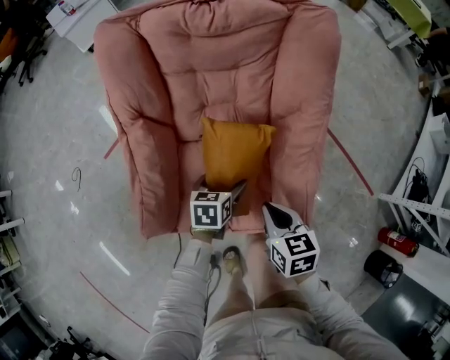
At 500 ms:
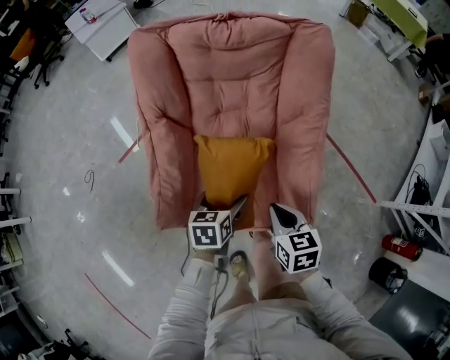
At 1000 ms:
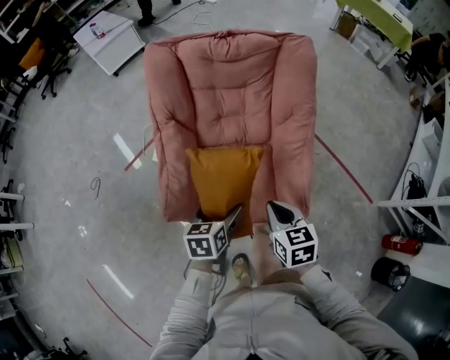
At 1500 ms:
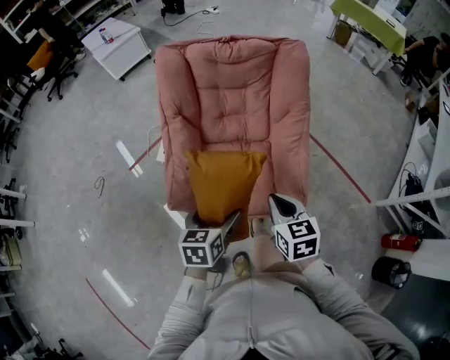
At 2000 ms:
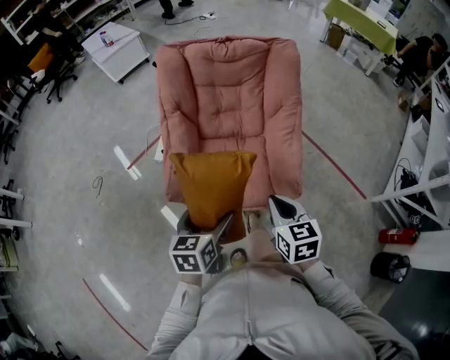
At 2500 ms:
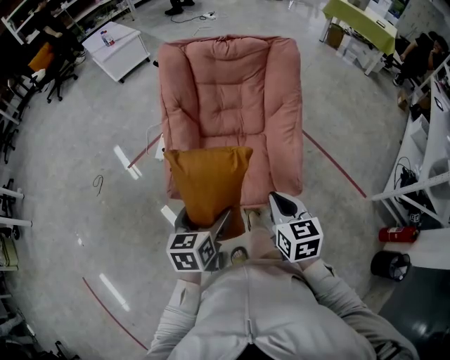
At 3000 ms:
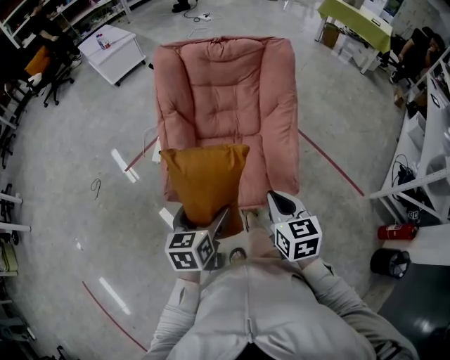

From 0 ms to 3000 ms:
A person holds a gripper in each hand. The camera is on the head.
From 0 ms to 1500 ms: The right gripper goes about 20 cm upward and backward, while the left gripper goes some 30 cm upward and backward.
From 1500 ms to 3000 ms: The grippers both shift backward by approximately 5 cm.

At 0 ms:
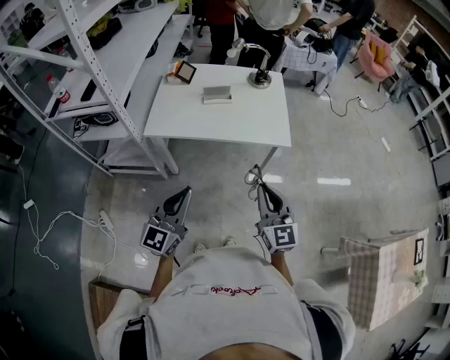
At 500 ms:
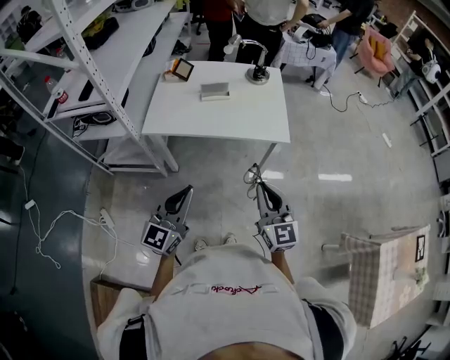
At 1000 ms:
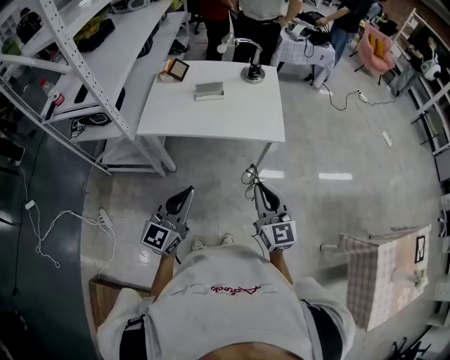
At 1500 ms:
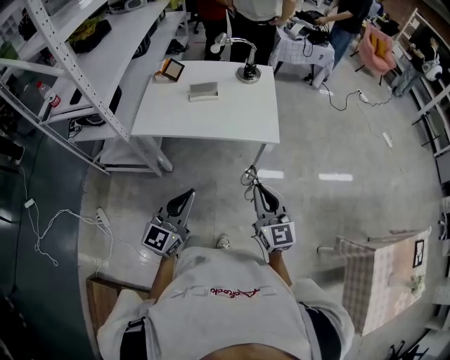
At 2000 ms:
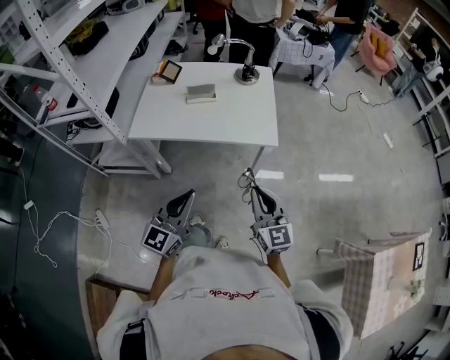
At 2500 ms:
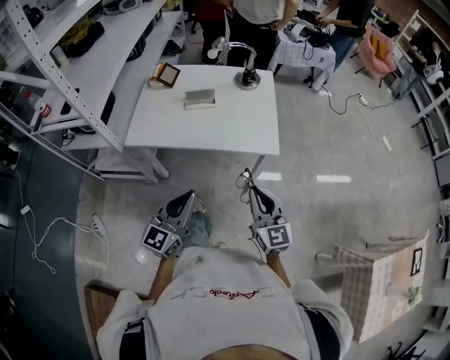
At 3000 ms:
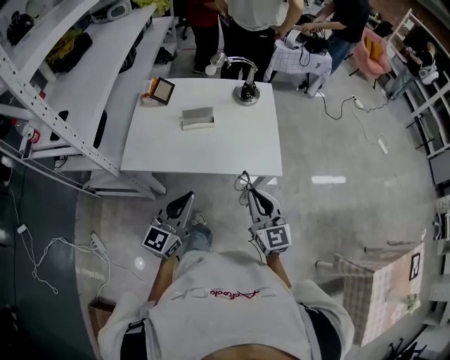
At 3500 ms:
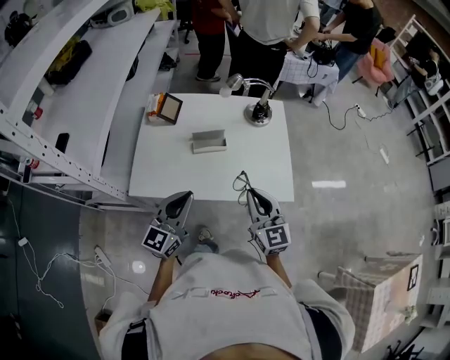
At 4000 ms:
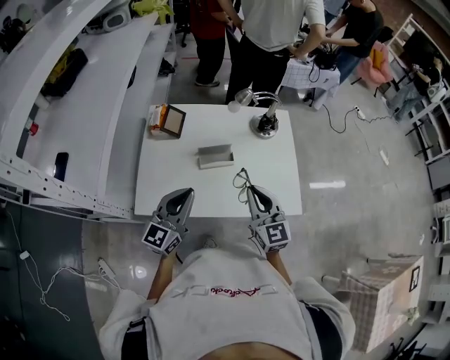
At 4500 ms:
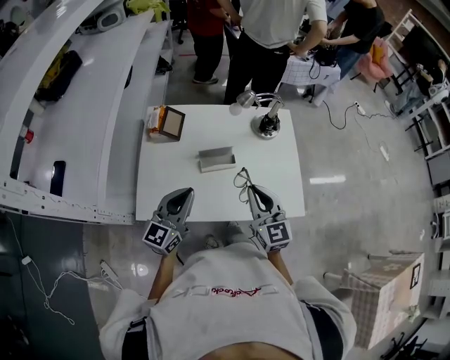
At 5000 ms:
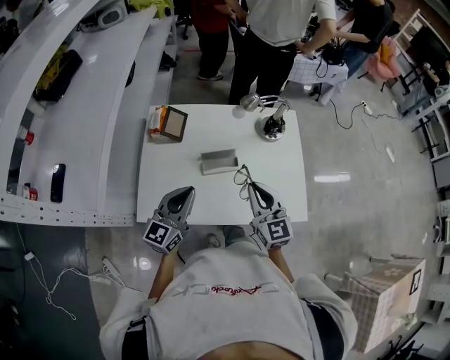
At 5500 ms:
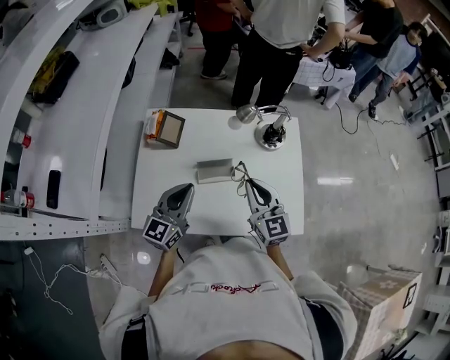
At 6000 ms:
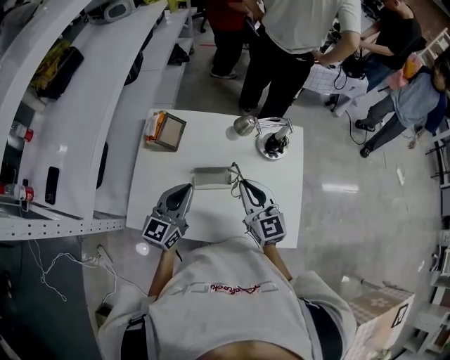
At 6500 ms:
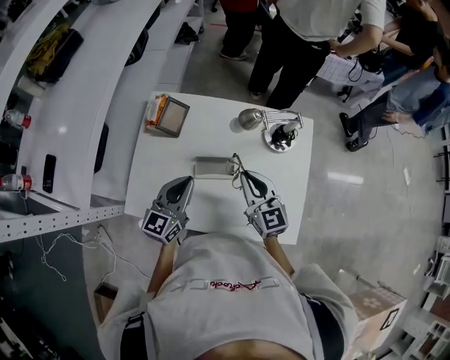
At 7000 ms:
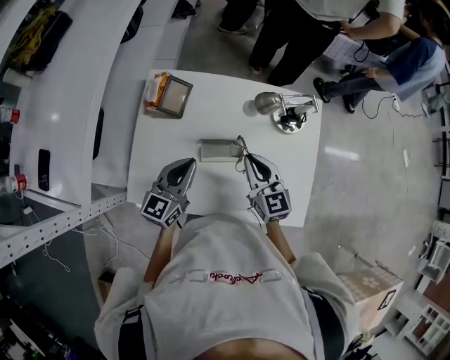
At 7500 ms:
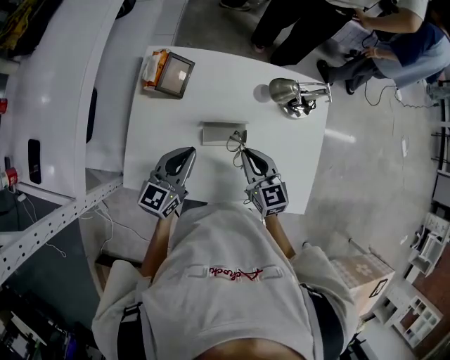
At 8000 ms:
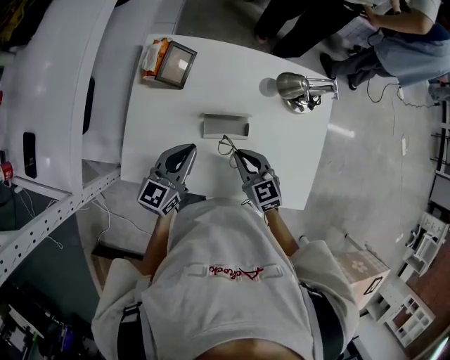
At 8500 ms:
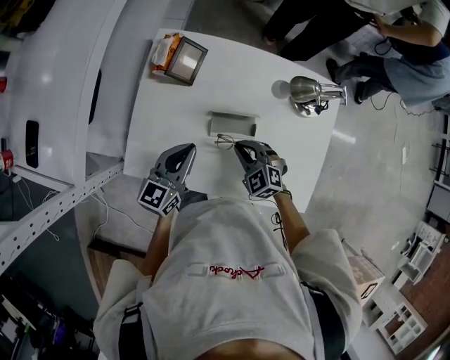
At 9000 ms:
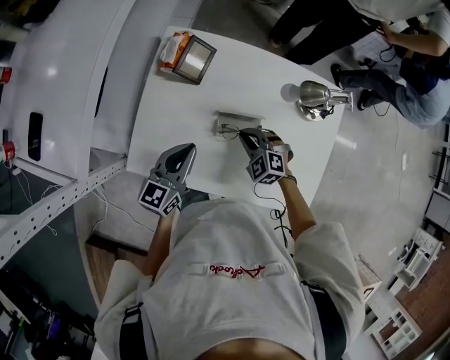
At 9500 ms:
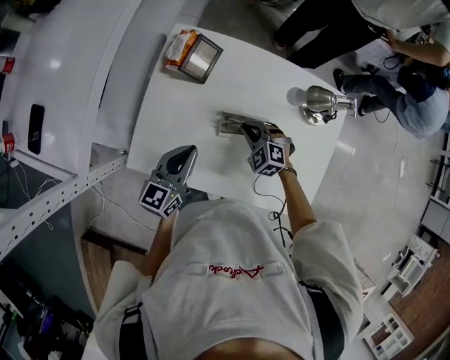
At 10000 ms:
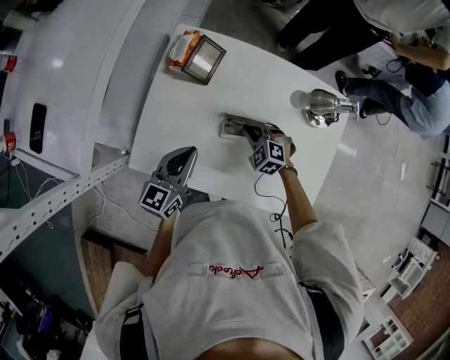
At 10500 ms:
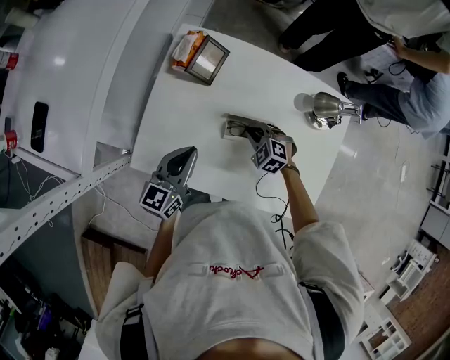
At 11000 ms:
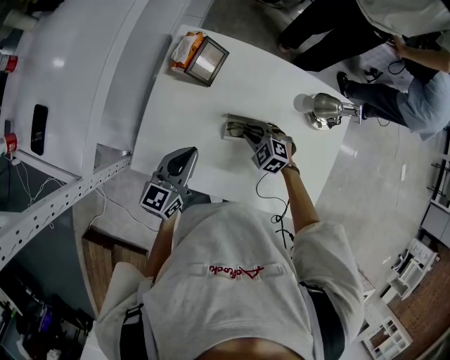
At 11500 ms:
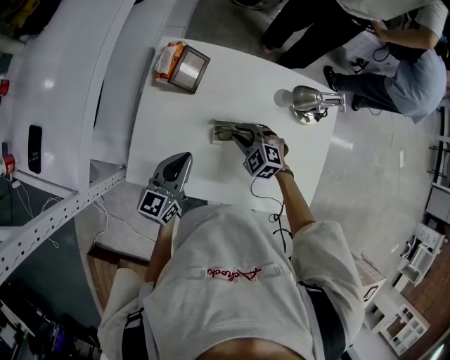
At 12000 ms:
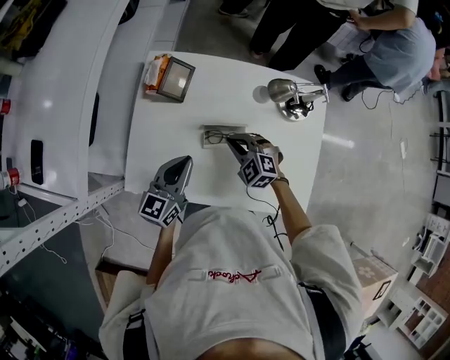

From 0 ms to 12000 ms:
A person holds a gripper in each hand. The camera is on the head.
From 0 ms to 2000 ms: Both grippers travel together to the right, roughly 10 cm.
From 2000 ms to 4000 ms: Both grippers move forward and to the left, approximately 40 cm.
From 4000 ms to 6000 ms: Both grippers travel together forward, roughly 15 cm.
From 6000 ms to 8000 ms: The right gripper is displaced downward and to the left by approximately 15 cm, and swivels about 30 degrees; the left gripper shifts roughly 10 cm downward.
From 8000 ms to 10000 ms: The right gripper moves downward and forward, roughly 10 cm, and rolls counterclockwise, seen from behind, by approximately 40 degrees; the left gripper goes some 5 cm to the left.
From 10000 ms to 12000 ms: The right gripper heads upward, covering approximately 5 cm.

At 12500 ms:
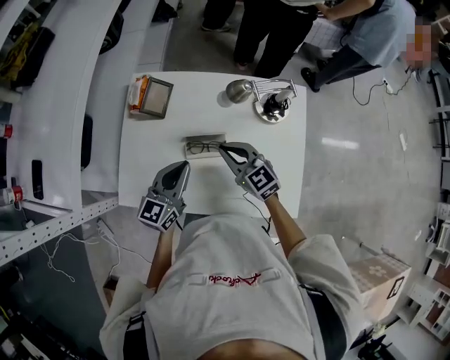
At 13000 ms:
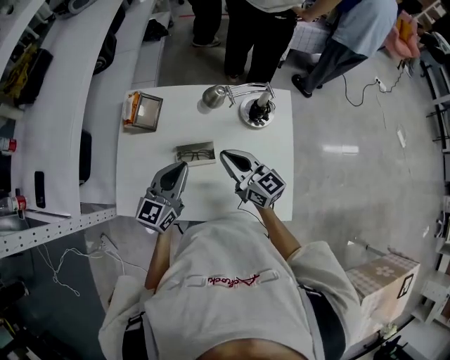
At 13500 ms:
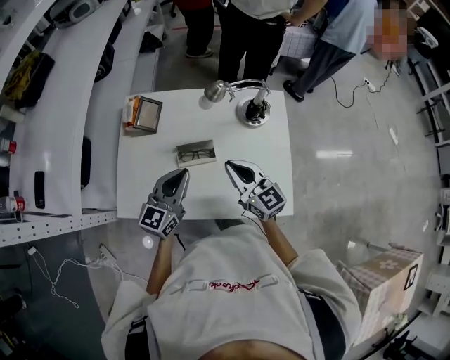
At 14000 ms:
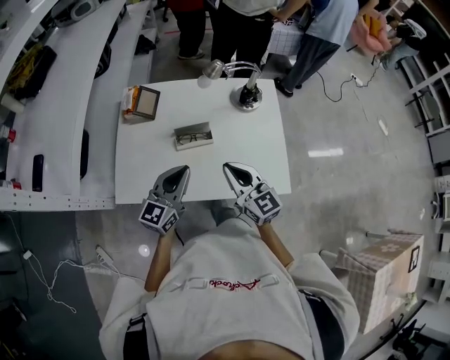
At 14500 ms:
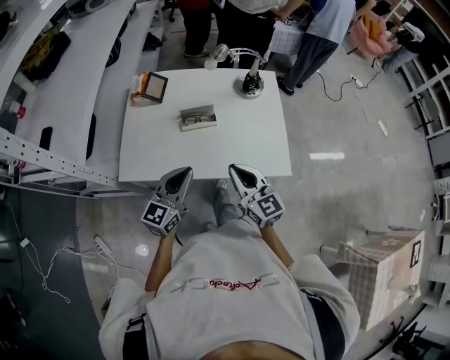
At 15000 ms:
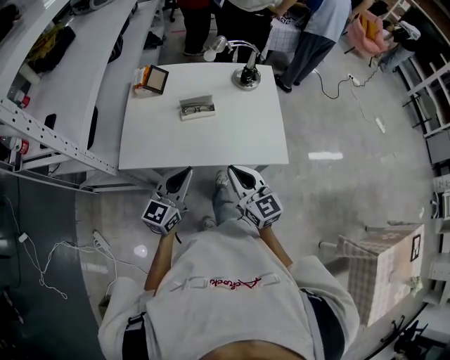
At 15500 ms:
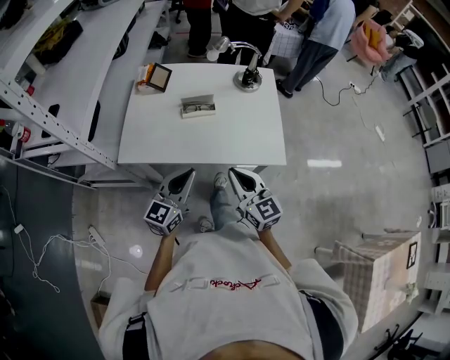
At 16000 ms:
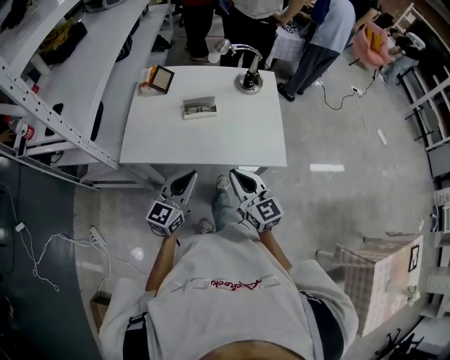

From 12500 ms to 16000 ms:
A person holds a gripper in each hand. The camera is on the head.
From 12500 ms to 14500 ms: The two grippers go roughly 25 cm backward. The right gripper turns by roughly 30 degrees.
From 14500 ms to 16000 ms: Both grippers move backward, about 10 cm.

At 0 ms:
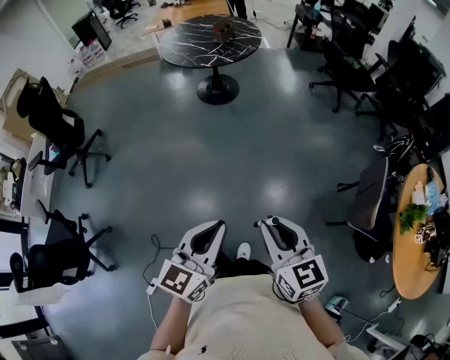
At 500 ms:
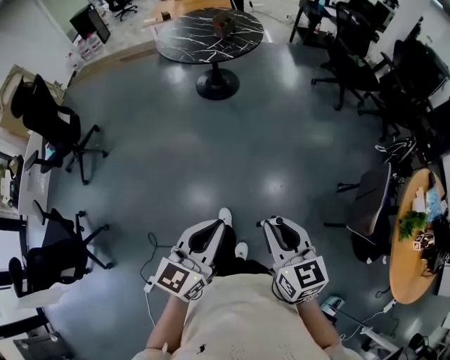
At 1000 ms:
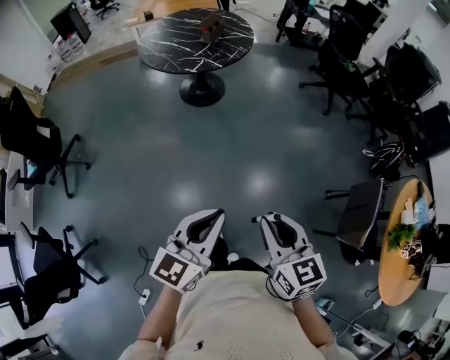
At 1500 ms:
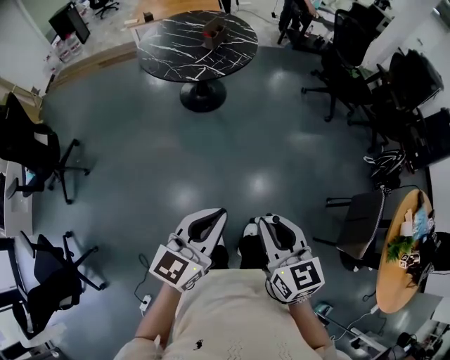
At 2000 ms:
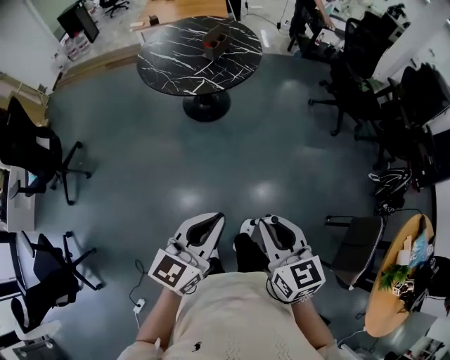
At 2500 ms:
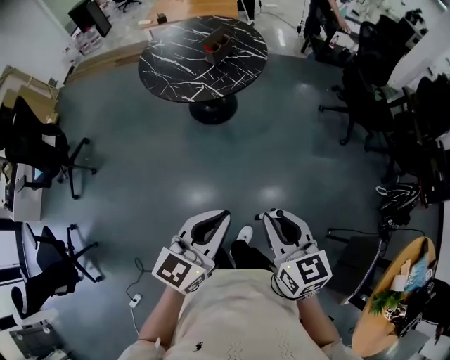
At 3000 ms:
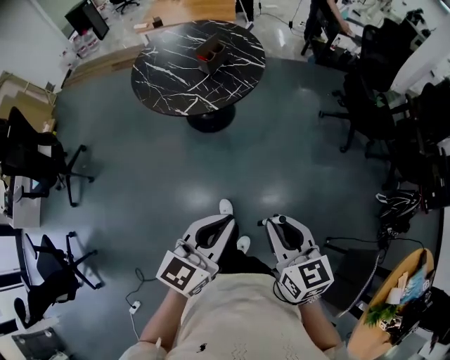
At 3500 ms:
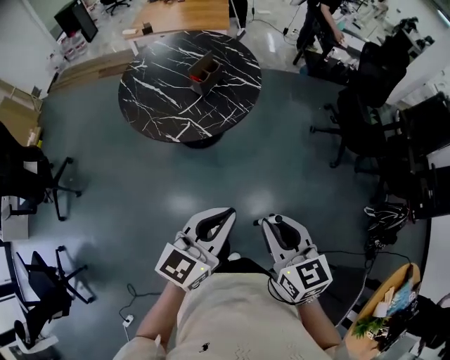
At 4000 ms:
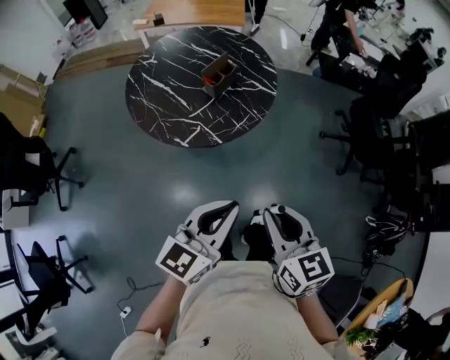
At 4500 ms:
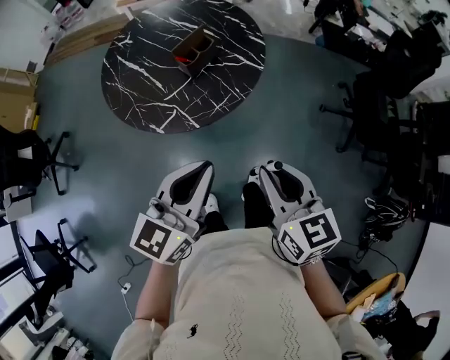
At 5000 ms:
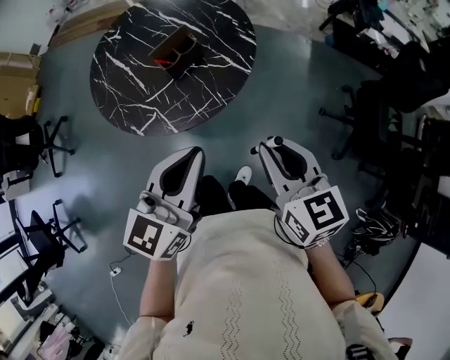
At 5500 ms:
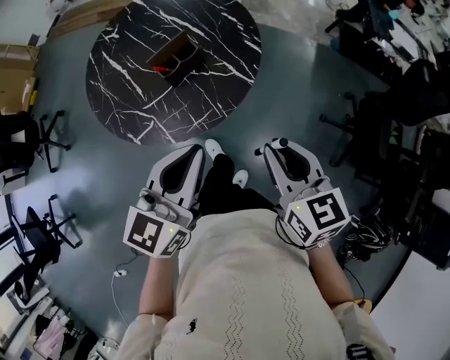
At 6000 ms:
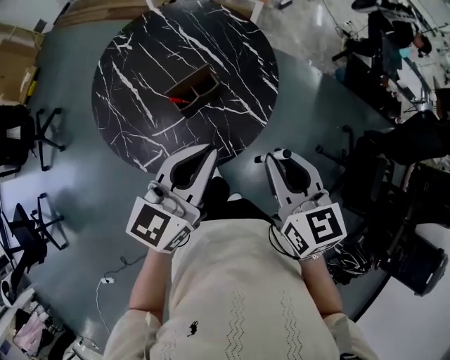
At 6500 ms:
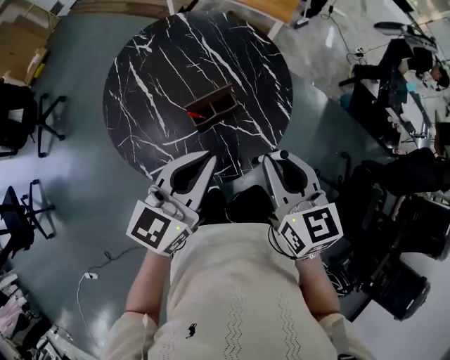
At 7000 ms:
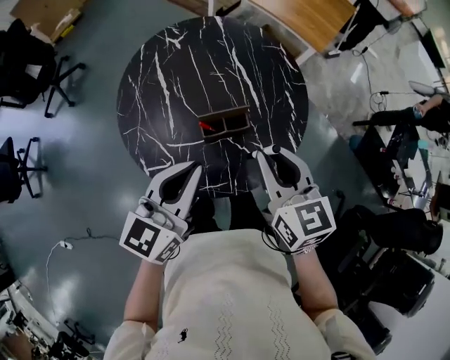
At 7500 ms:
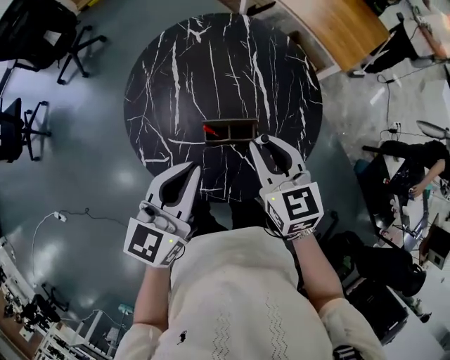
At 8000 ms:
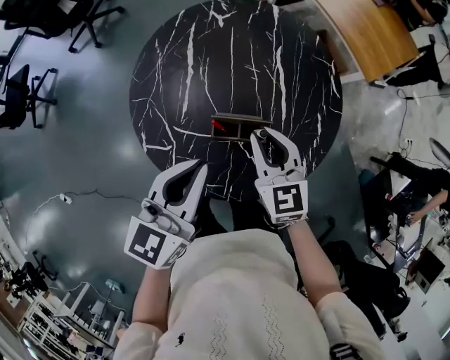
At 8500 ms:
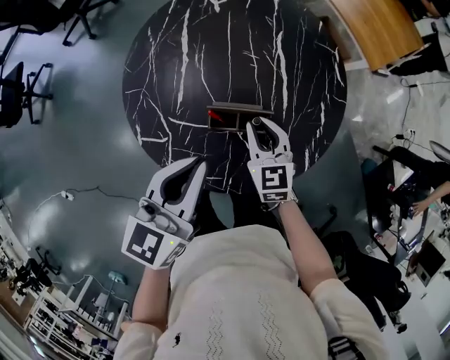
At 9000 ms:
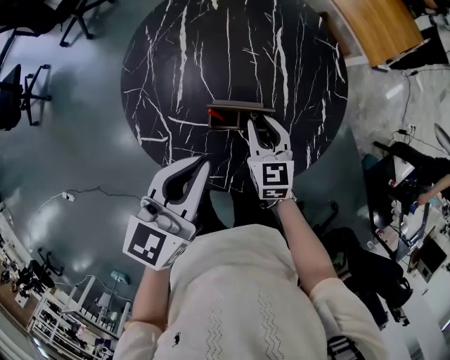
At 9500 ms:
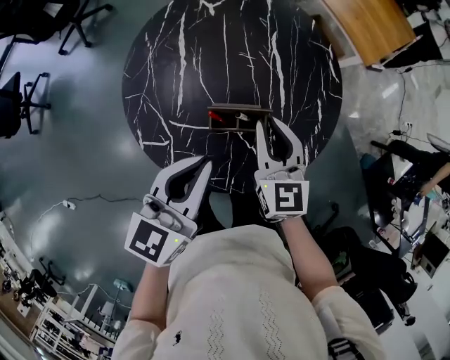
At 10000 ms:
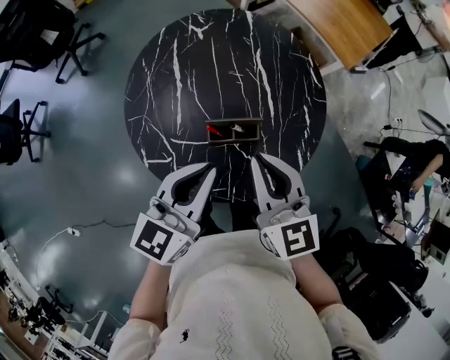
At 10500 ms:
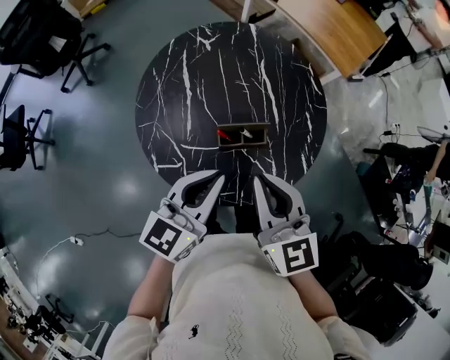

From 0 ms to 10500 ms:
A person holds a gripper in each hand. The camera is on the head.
From 0 ms to 2000 ms: Both grippers move forward, approximately 35 cm.
From 2000 ms to 4000 ms: Both grippers travel together forward, about 40 cm.
From 4000 ms to 6500 ms: The two grippers travel together, forward, about 40 cm. The left gripper changes its angle by roughly 30 degrees; the right gripper swivels approximately 20 degrees.
From 6500 ms to 8500 ms: The right gripper is displaced downward by approximately 20 cm, and turns by approximately 30 degrees, while the left gripper changes place by about 10 cm, and turns by approximately 40 degrees.
From 8500 ms to 10500 ms: The right gripper goes approximately 25 cm upward and backward. The left gripper moves roughly 5 cm.
